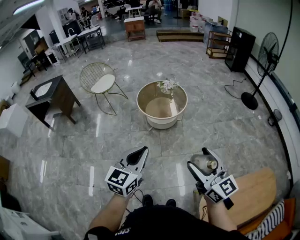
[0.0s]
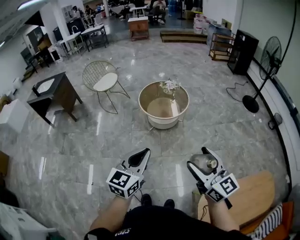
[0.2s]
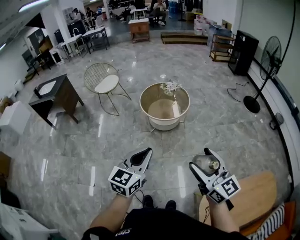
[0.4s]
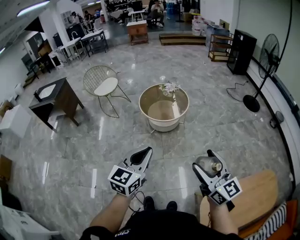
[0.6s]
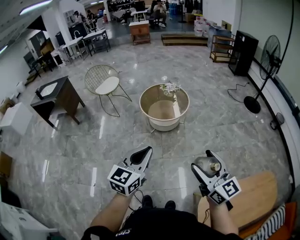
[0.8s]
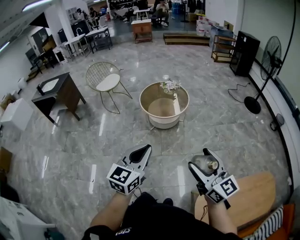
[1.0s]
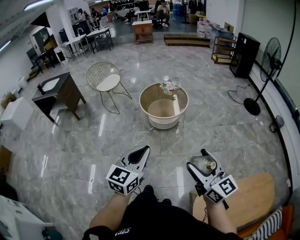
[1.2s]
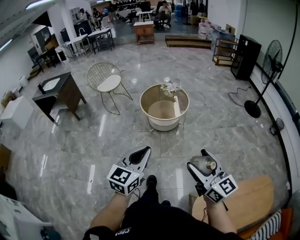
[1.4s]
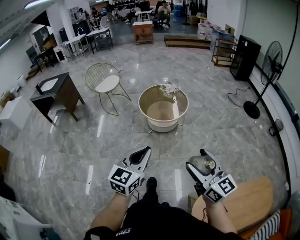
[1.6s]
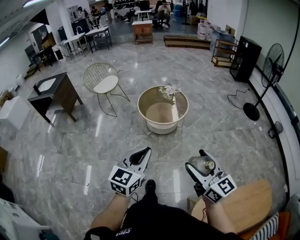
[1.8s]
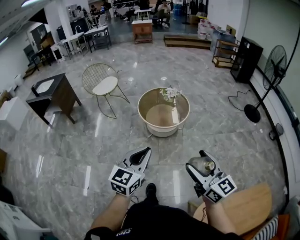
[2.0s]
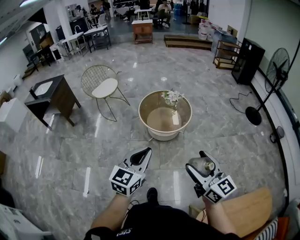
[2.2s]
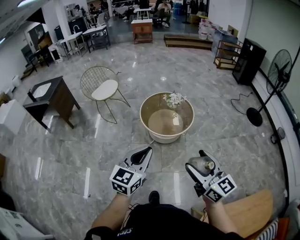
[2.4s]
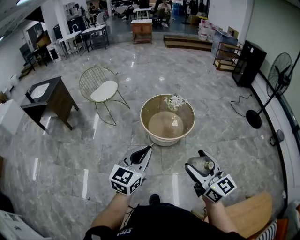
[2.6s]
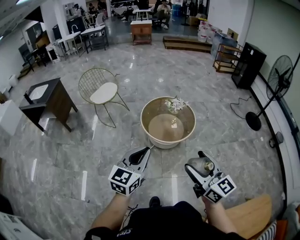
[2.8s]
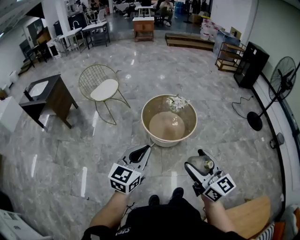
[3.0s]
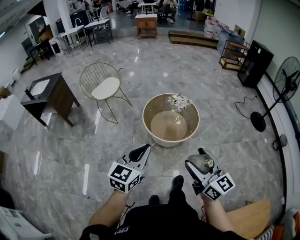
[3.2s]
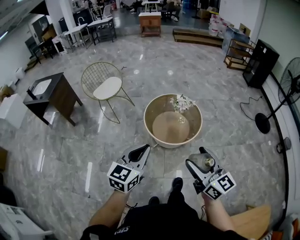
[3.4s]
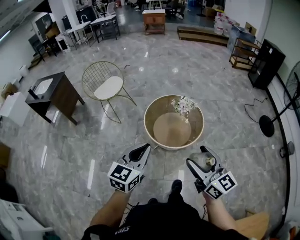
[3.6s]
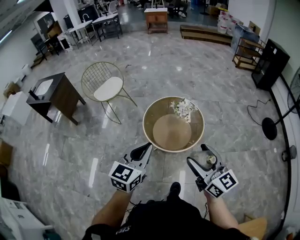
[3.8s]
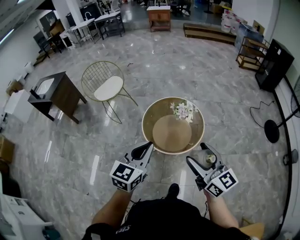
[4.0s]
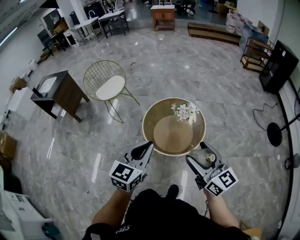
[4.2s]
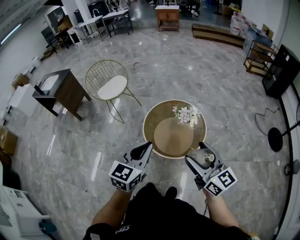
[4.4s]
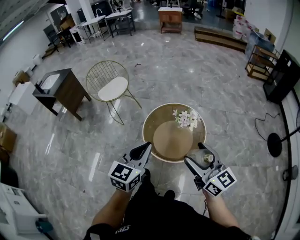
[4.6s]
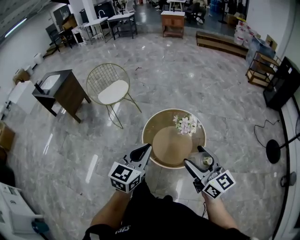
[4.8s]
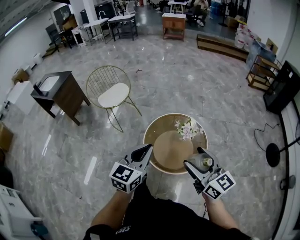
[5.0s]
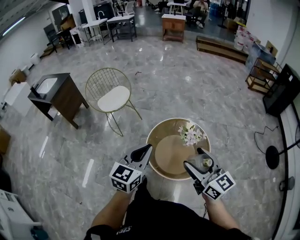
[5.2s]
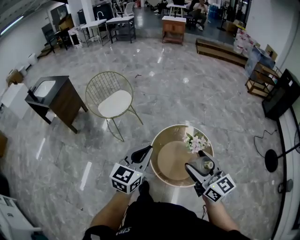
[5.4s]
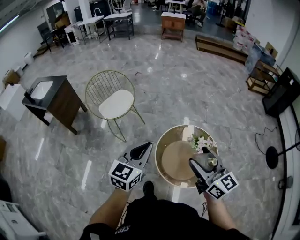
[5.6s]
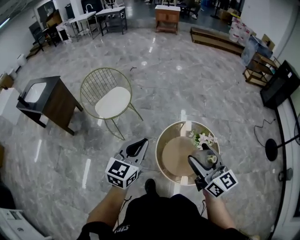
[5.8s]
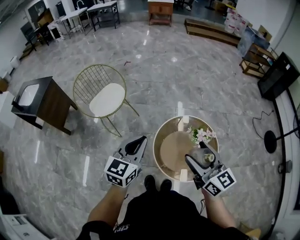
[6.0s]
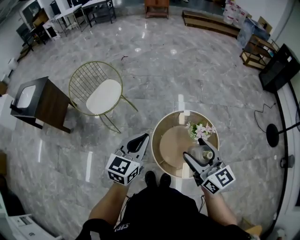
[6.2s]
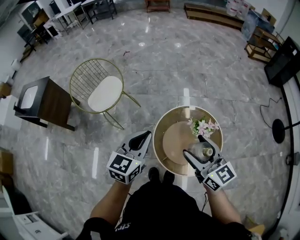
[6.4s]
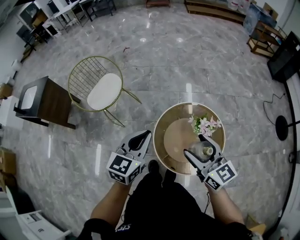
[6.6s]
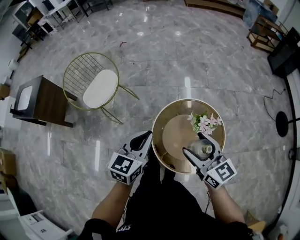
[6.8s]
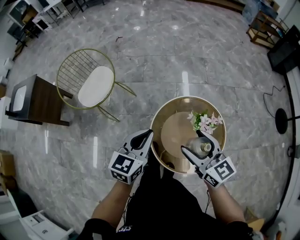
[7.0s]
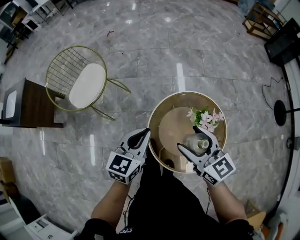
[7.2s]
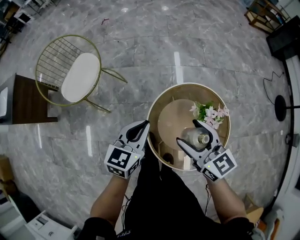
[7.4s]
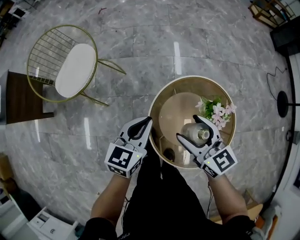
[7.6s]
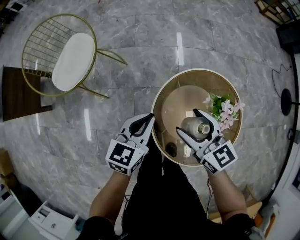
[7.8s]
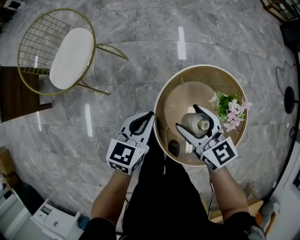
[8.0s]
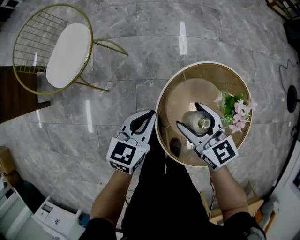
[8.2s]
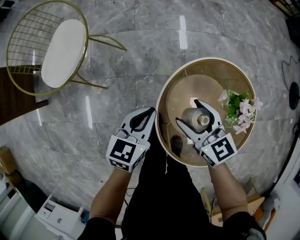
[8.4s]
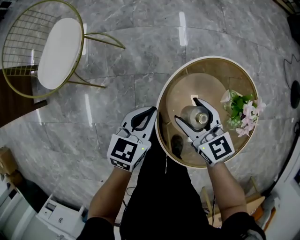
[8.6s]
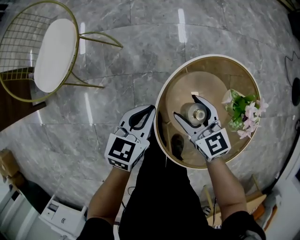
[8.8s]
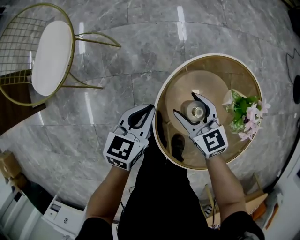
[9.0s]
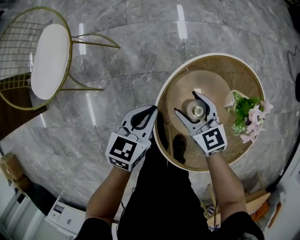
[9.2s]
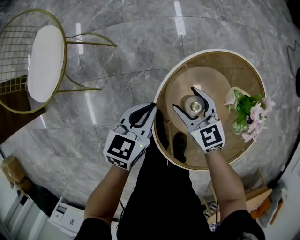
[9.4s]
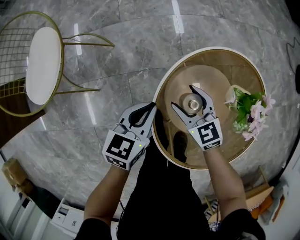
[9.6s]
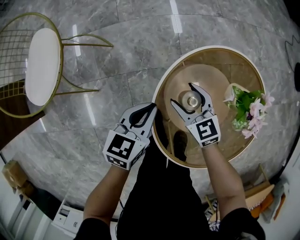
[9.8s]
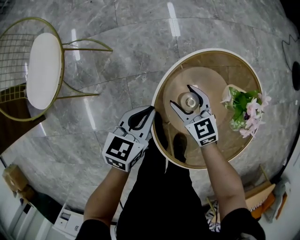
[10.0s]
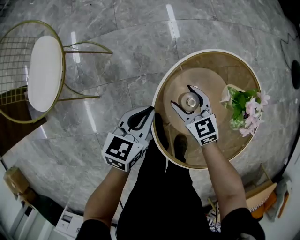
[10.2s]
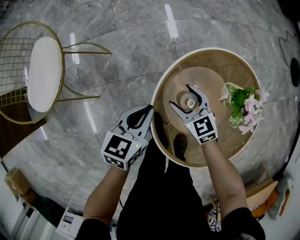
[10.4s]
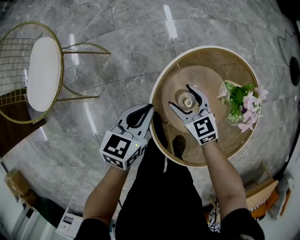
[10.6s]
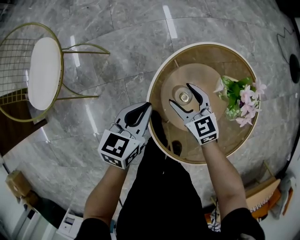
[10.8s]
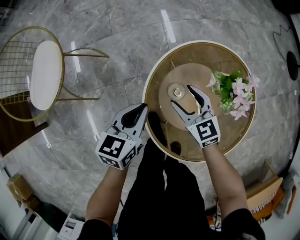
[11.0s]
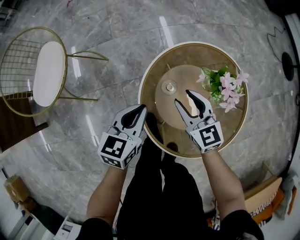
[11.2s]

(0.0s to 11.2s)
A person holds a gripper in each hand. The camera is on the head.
0.0s - 1.6s: The left gripper changes place by about 5 cm.
1.6s - 3.2s: The two grippers go approximately 30 cm forward.
3.2s - 4.8s: Both grippers travel together forward and to the right, roughly 30 cm.
4.8s - 6.4s: The two grippers go about 30 cm forward and to the left.
6.4s - 8.0s: The grippers both shift downward and forward by approximately 40 cm.
8.0s - 9.6s: Both grippers move downward, approximately 20 cm.
9.6s - 11.2s: The right gripper is displaced upward, to the right and backward by approximately 15 cm, and closes. Meanwhile the left gripper shifts approximately 10 cm upward and backward.

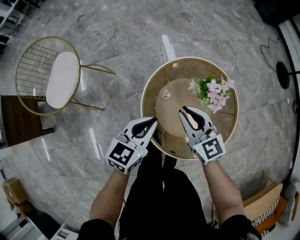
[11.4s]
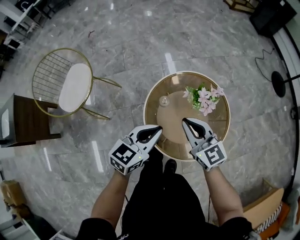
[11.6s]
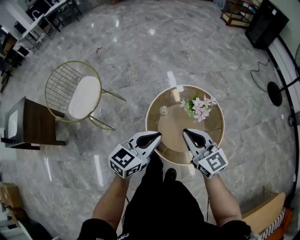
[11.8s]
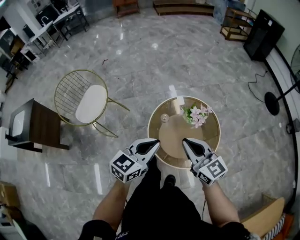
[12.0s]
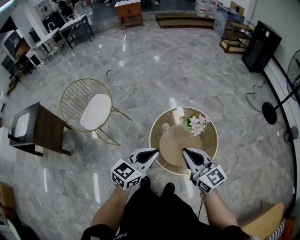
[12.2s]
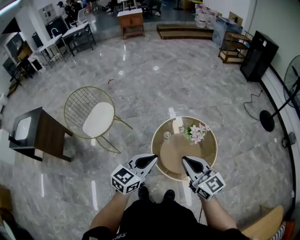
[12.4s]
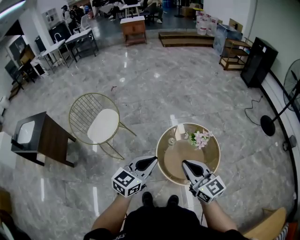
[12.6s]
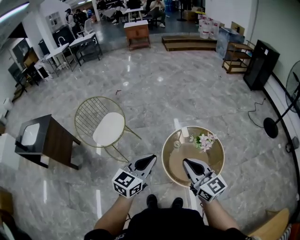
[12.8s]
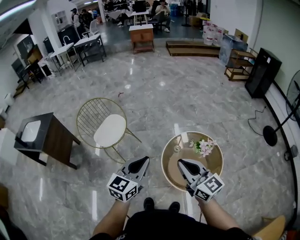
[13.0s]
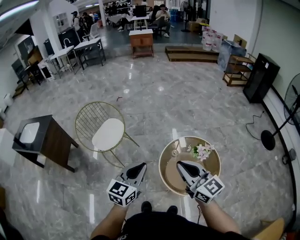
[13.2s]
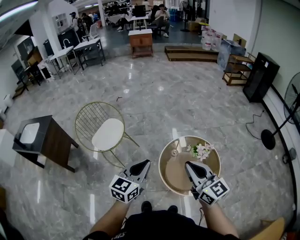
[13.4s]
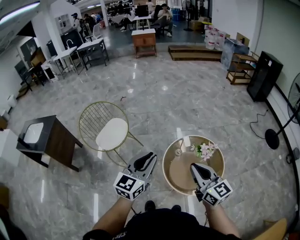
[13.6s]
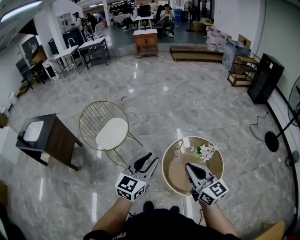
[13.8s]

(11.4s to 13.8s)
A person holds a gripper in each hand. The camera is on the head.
11.4s - 12.6s: Both grippers travel together upward and backward, approximately 40 cm.
12.6s - 13.8s: The left gripper shifts roughly 5 cm upward, and opens up.

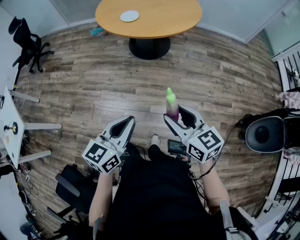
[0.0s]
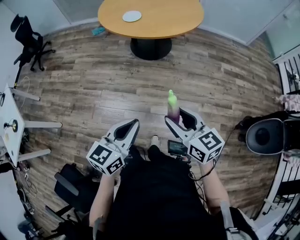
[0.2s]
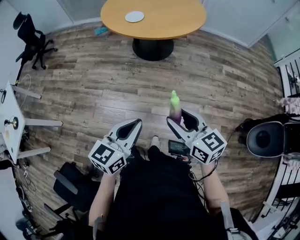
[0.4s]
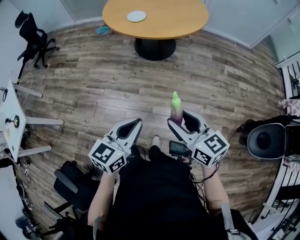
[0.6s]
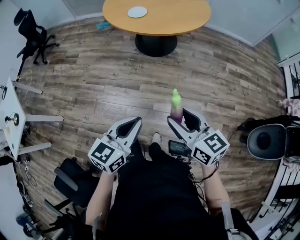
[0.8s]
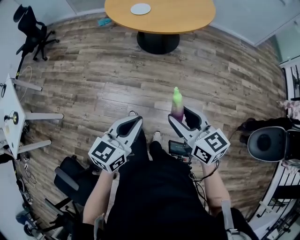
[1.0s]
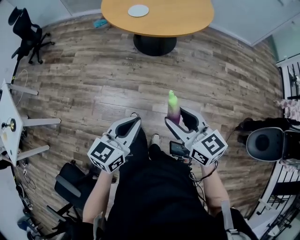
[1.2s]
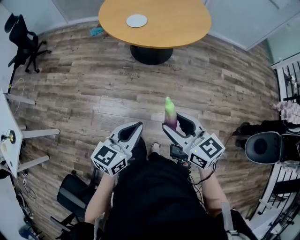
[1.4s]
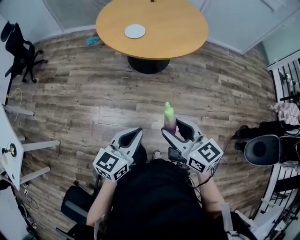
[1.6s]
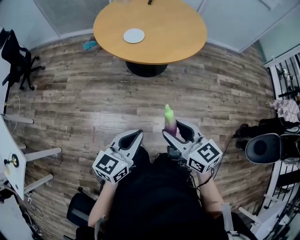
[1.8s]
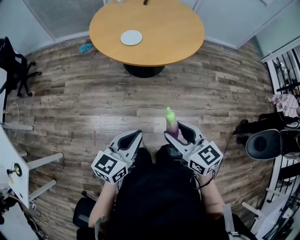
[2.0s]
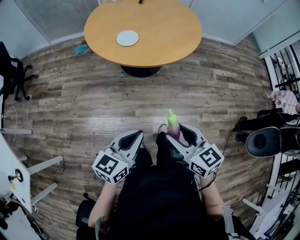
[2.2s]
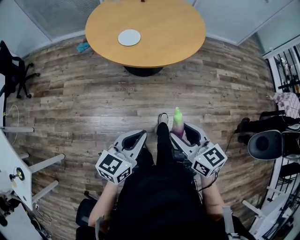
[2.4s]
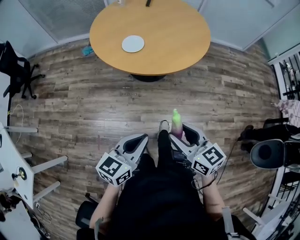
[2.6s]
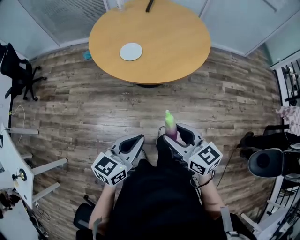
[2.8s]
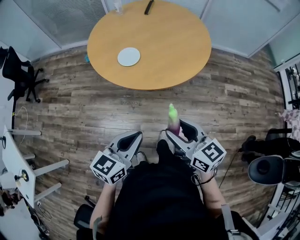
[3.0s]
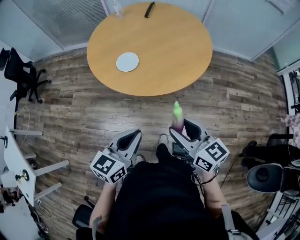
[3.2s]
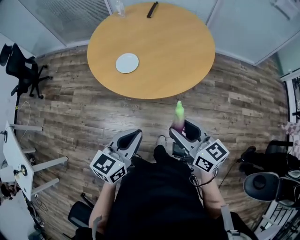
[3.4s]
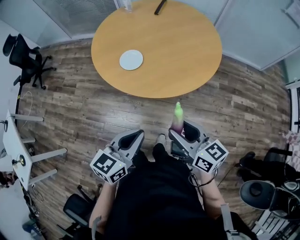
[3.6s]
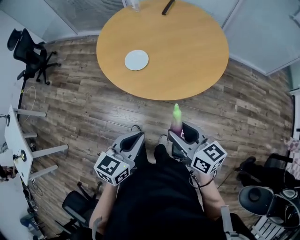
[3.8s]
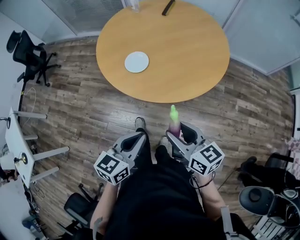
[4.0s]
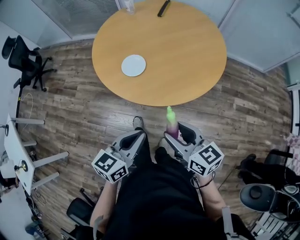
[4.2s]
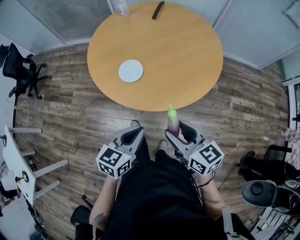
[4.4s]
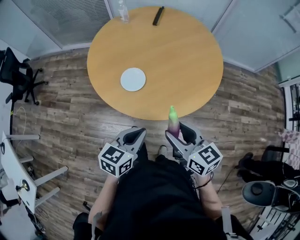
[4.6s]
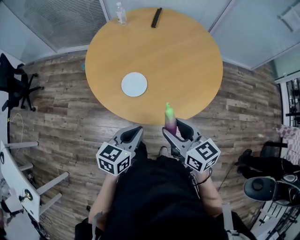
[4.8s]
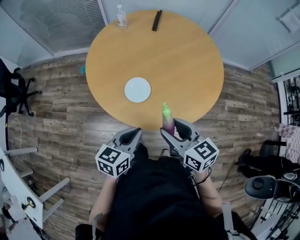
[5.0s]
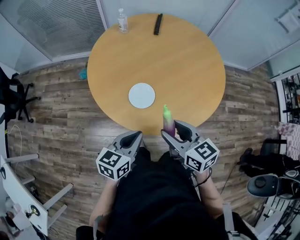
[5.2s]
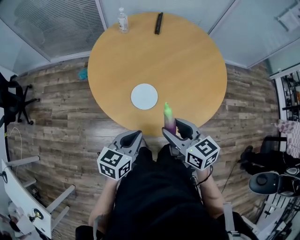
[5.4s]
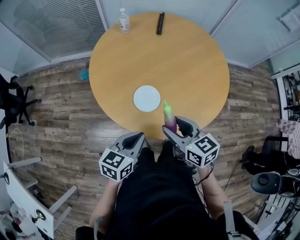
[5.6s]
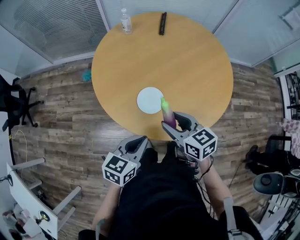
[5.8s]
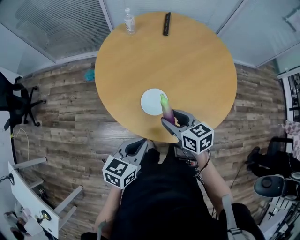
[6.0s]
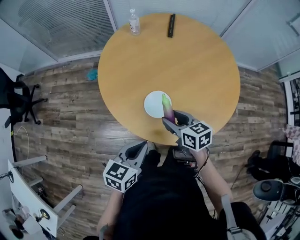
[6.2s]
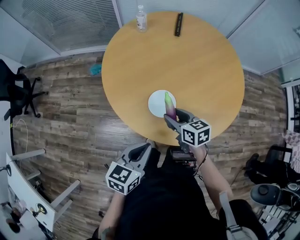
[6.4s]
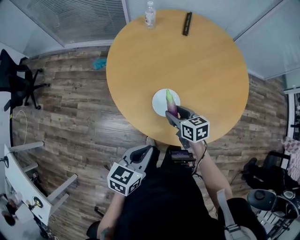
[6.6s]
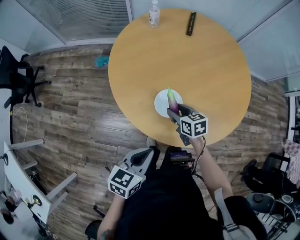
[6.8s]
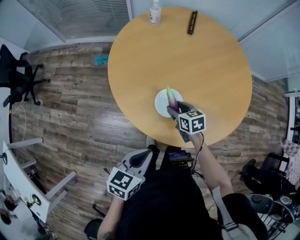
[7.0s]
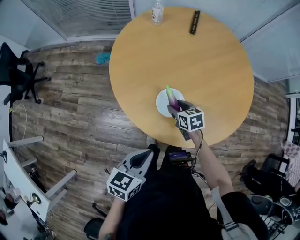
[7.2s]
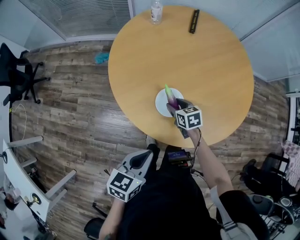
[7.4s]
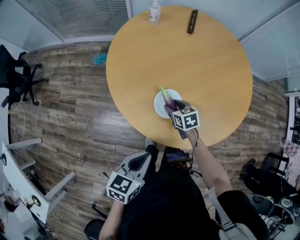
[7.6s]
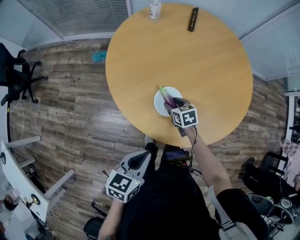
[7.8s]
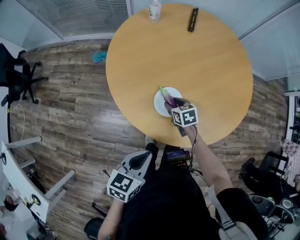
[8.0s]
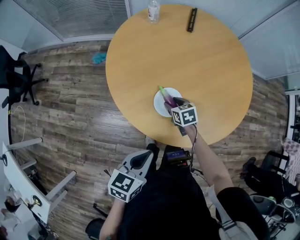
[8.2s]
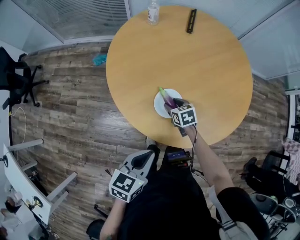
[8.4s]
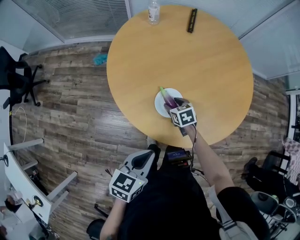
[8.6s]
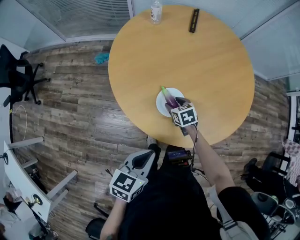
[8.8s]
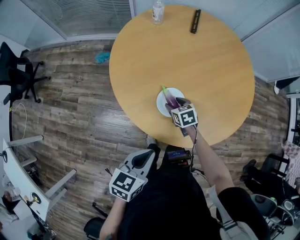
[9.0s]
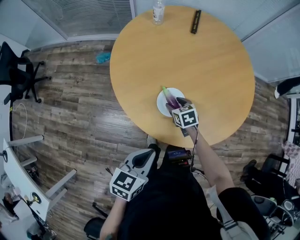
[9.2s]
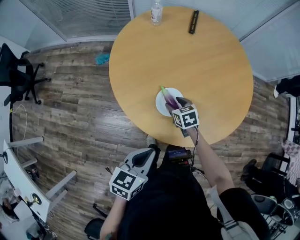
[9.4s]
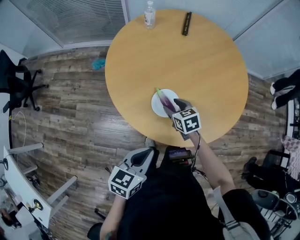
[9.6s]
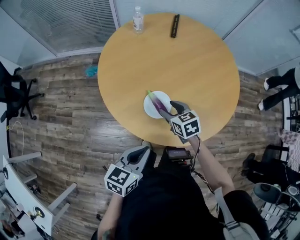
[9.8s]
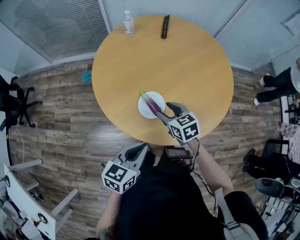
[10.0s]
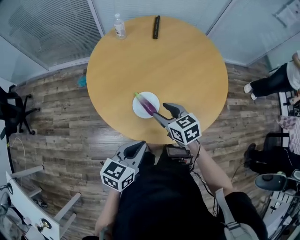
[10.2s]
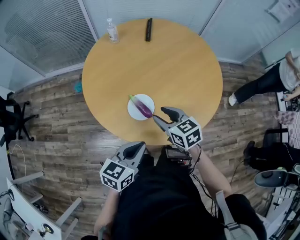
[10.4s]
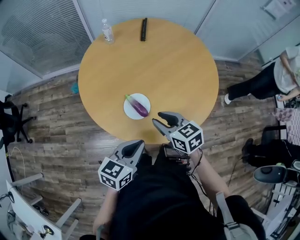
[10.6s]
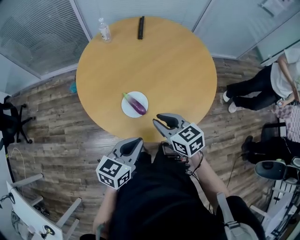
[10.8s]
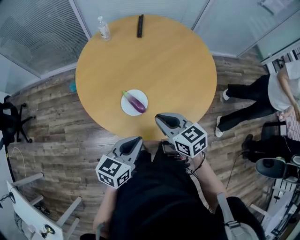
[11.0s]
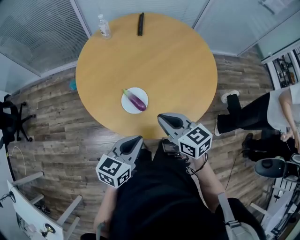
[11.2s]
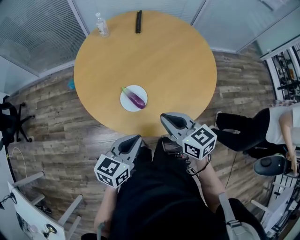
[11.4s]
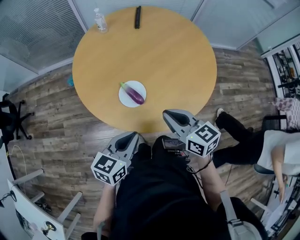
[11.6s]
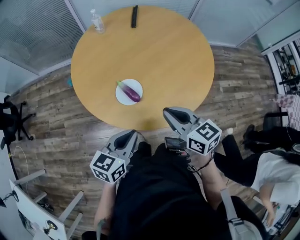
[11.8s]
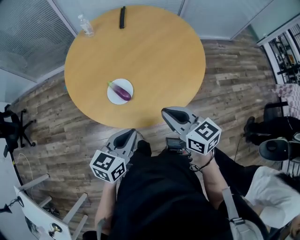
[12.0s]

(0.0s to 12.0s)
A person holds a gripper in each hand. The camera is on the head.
0.0s - 1.6s: Both grippers travel together forward and to the left, some 15 cm.
1.6s - 3.0s: The grippers both shift forward by roughly 20 cm.
3.0s - 4.4s: Both grippers travel together forward, some 15 cm.
4.4s - 6.0s: The right gripper goes about 30 cm forward and to the left. Meanwhile the left gripper shifts roughly 25 cm to the left and forward.
6.0s - 7.6s: The right gripper shifts roughly 20 cm downward and forward, and turns by some 20 degrees.
7.6s - 9.0s: The grippers make only small movements.
9.0s - 10.4s: The left gripper is displaced to the right by some 5 cm; the right gripper is displaced upward by roughly 20 cm, and swivels about 20 degrees.
10.4s - 12.0s: The left gripper travels to the right by some 5 cm. The right gripper heads to the right, backward and upward, covering roughly 20 cm, and closes its fingers.
